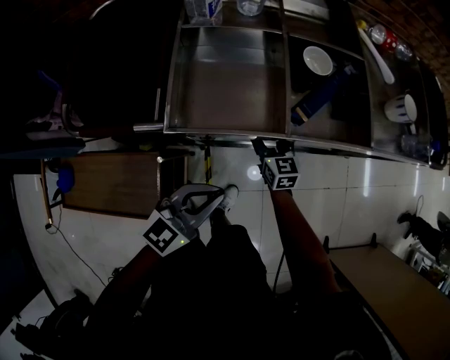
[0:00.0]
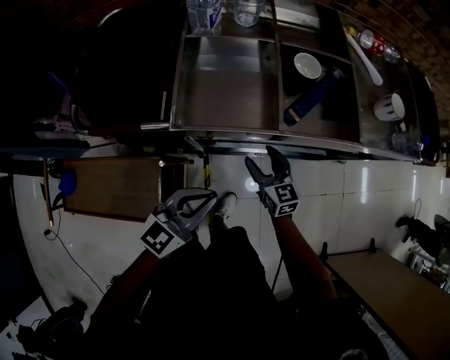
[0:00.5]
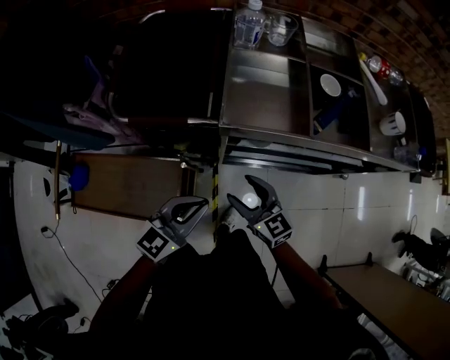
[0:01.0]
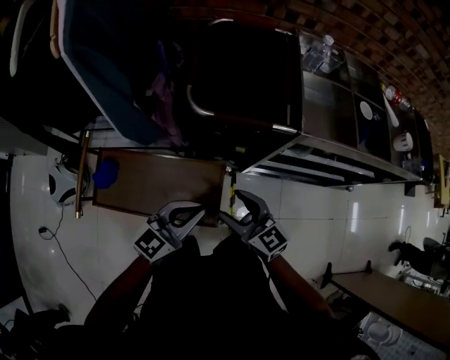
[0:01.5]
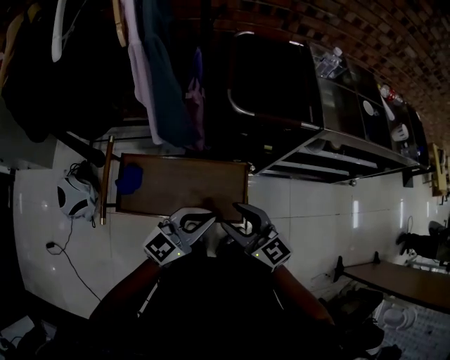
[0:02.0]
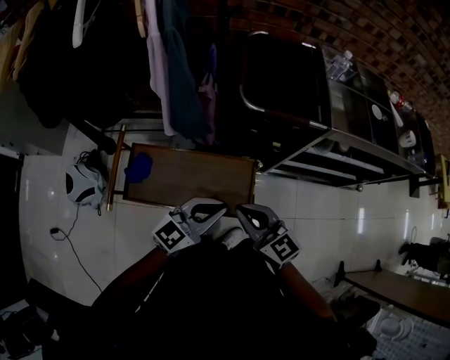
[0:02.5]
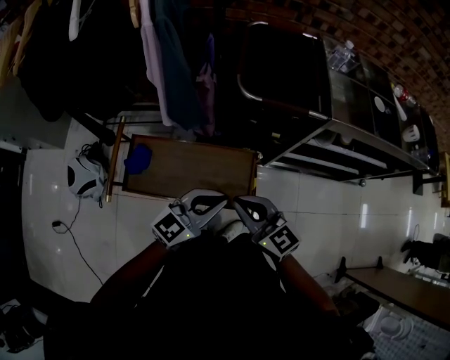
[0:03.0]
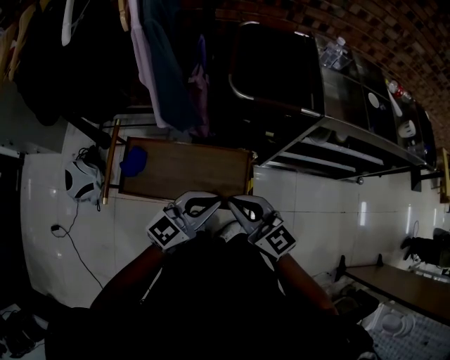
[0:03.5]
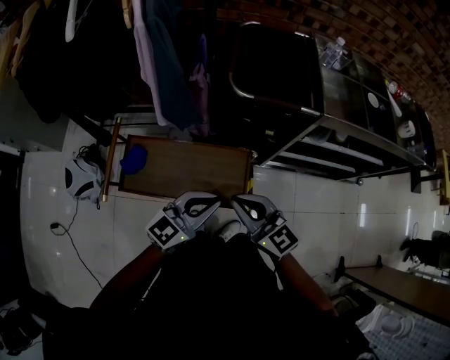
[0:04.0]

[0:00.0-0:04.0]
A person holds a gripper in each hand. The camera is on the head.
0:00.0 to 0:02.0: The two grippers travel together, to the left and backward, roughly 50 cm. The right gripper shifts roughly 25 cm upward, and rotates approximately 30 degrees.
0:02.0 to 0:04.0: The right gripper closes.

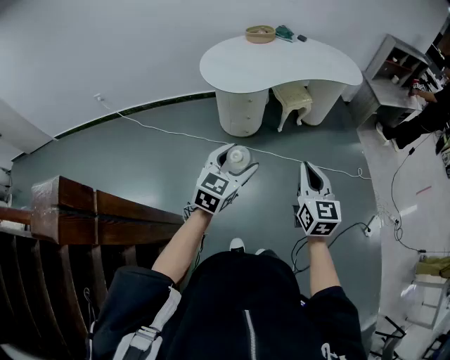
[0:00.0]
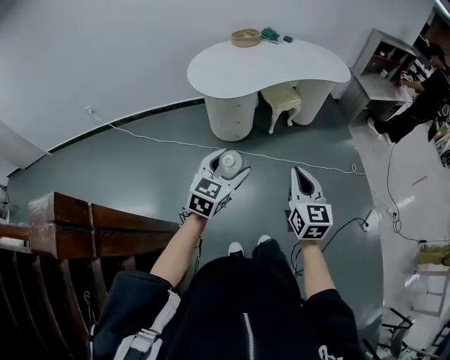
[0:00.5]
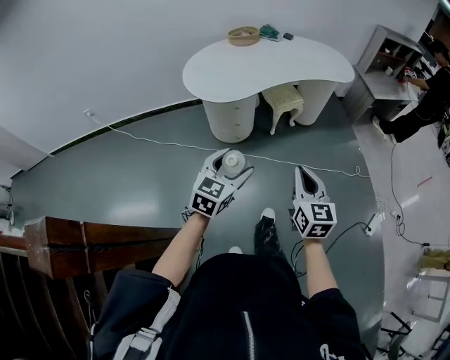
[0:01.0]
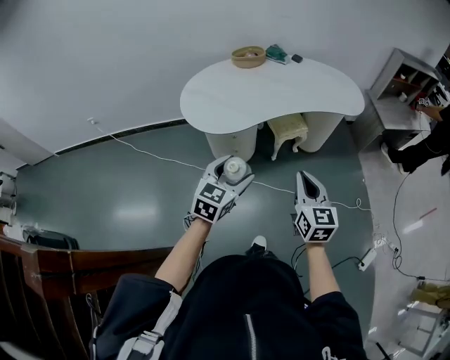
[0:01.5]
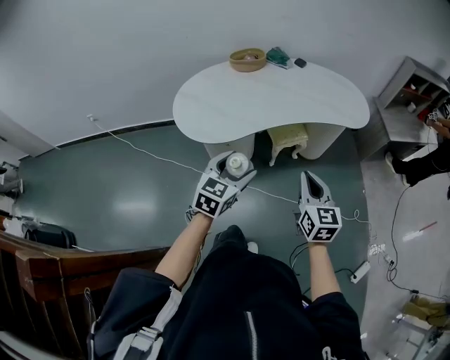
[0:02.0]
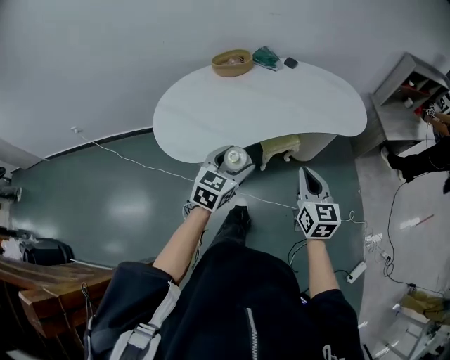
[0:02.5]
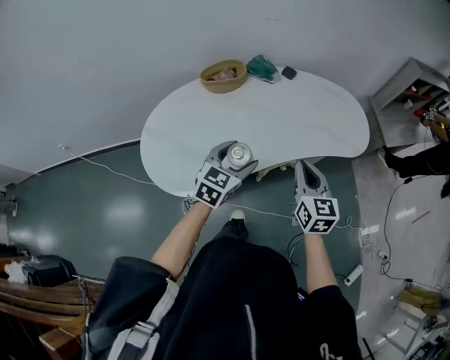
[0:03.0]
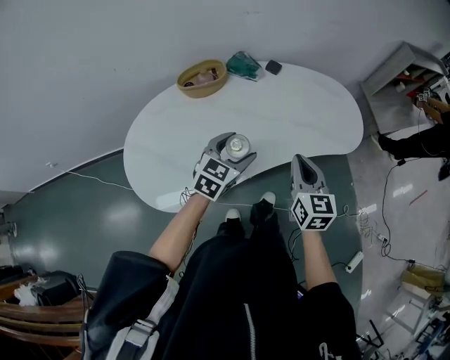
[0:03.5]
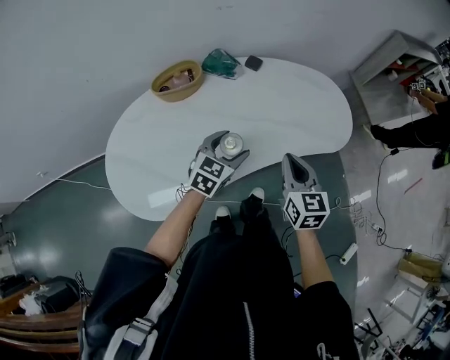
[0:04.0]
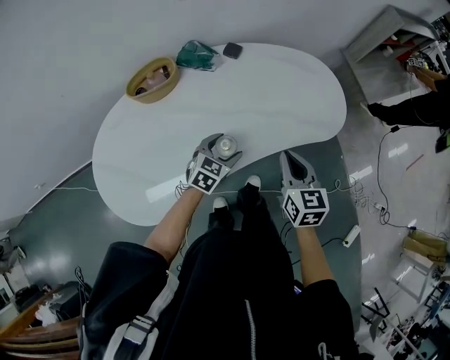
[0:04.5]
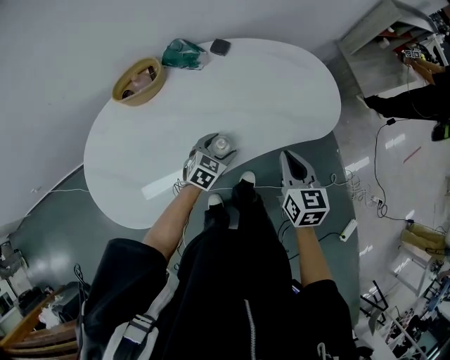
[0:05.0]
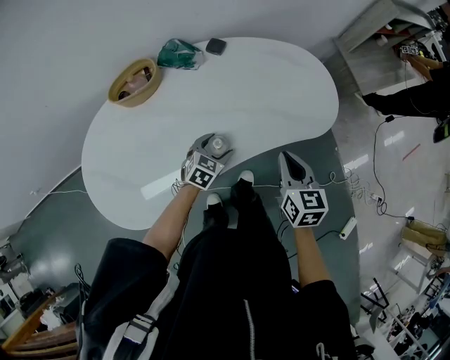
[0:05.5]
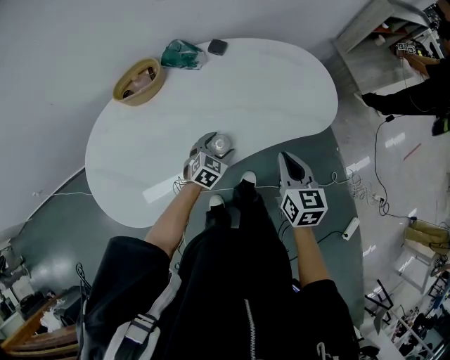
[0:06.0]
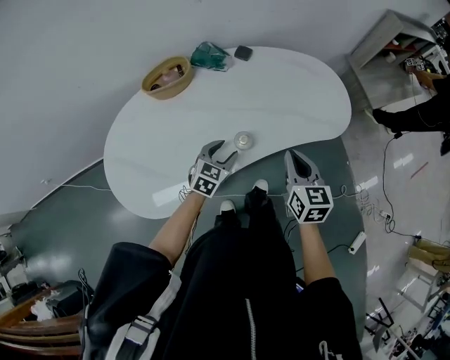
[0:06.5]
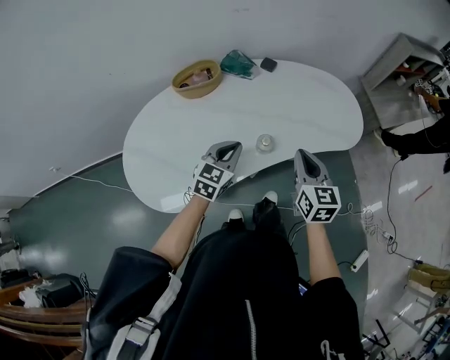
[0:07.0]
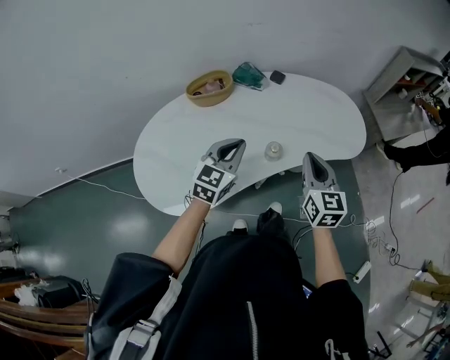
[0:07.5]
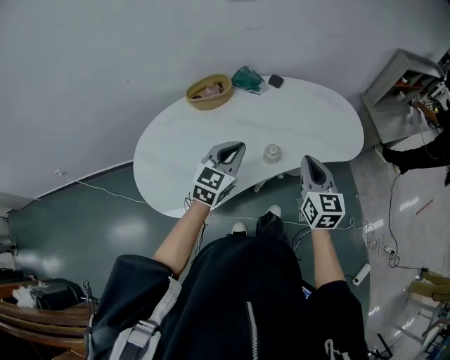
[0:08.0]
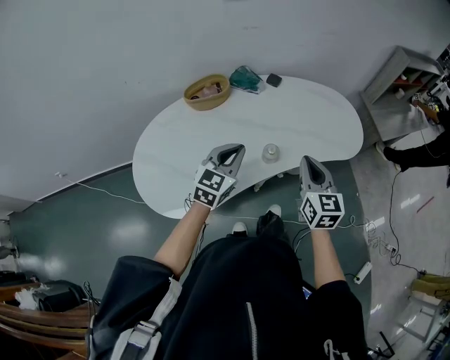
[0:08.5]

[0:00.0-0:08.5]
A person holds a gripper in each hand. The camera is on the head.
0:00.0 to 0:02.0: The two grippers go some 35 cm forward.
0:02.0 to 0:04.0: The pair of grippers is taken forward, approximately 40 cm.
0:04.0 to 0:06.5: The left gripper moves downward, about 10 cm.
0:06.5 to 0:08.5: The right gripper shifts roughly 10 cm upward and to the left. The left gripper heads upward, covering some 20 cm, and closes up.

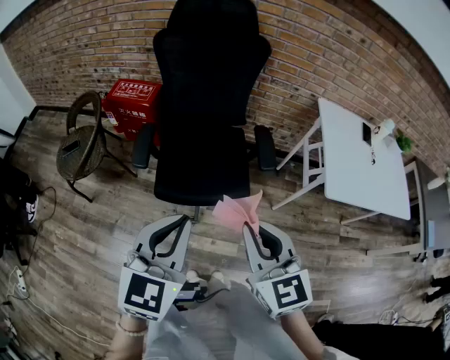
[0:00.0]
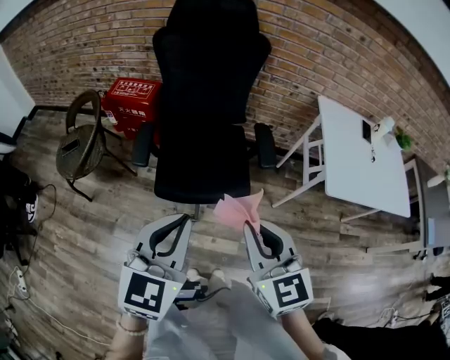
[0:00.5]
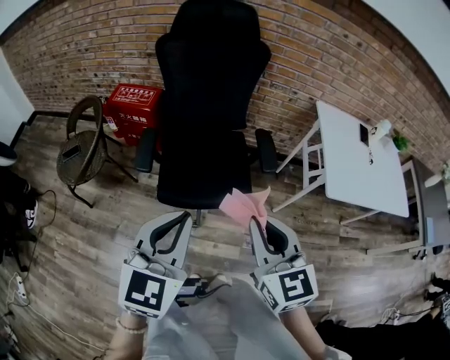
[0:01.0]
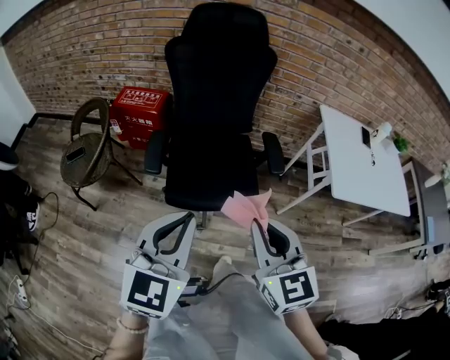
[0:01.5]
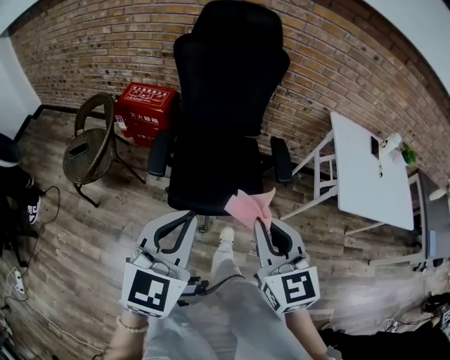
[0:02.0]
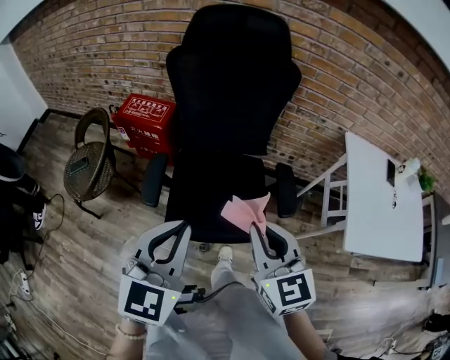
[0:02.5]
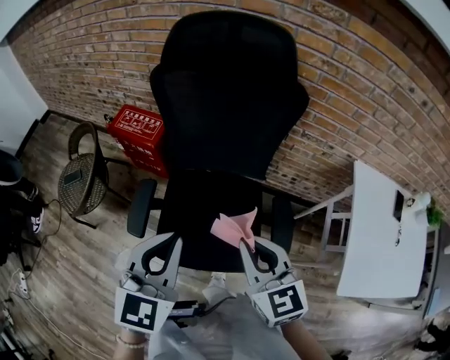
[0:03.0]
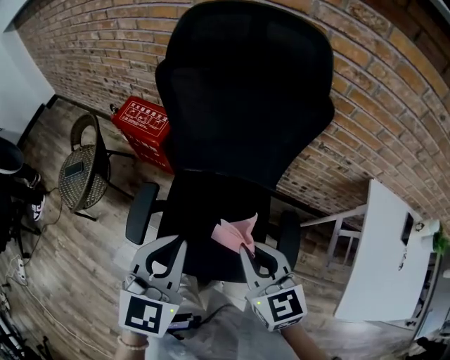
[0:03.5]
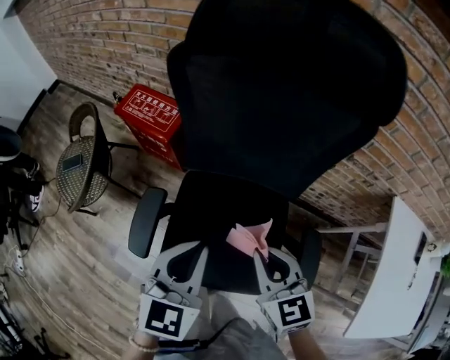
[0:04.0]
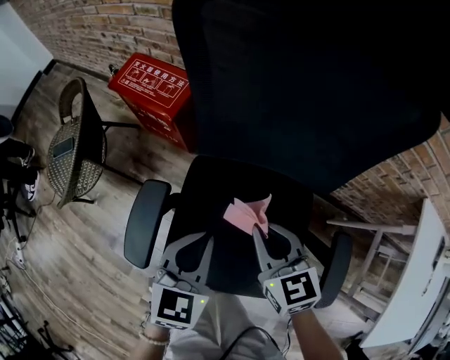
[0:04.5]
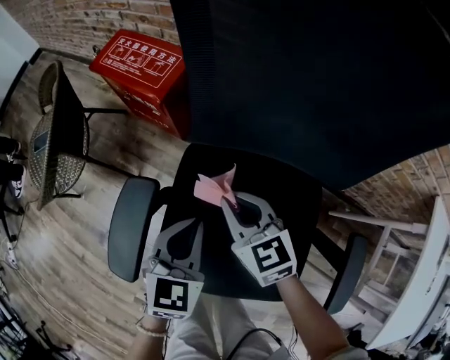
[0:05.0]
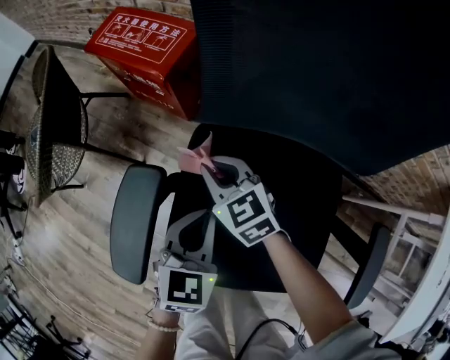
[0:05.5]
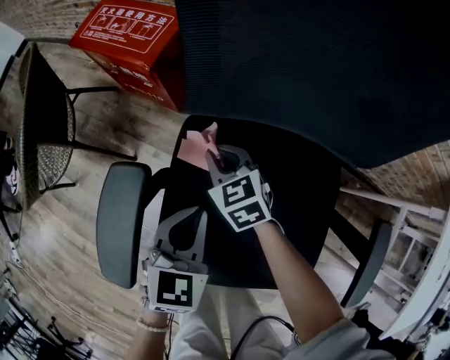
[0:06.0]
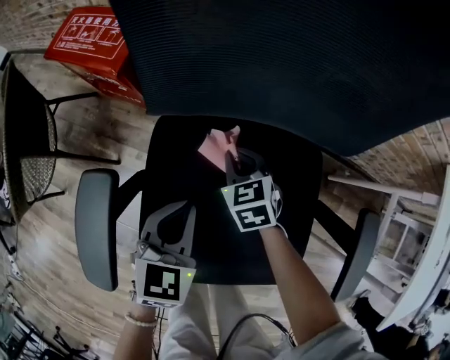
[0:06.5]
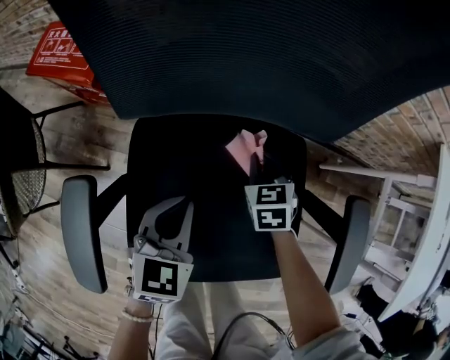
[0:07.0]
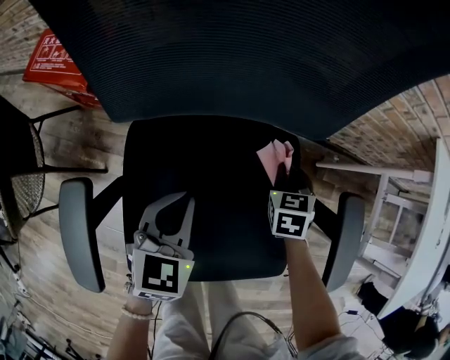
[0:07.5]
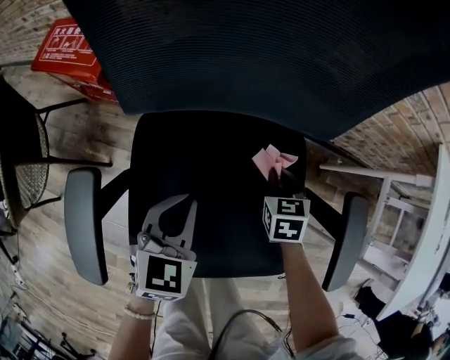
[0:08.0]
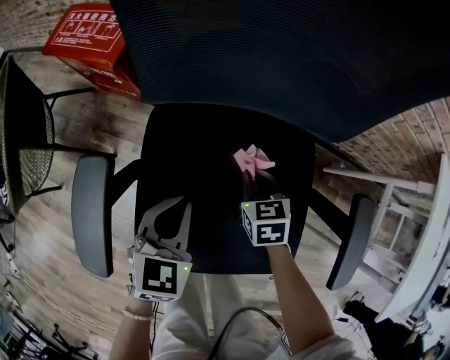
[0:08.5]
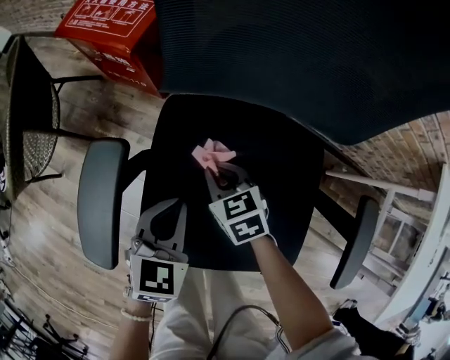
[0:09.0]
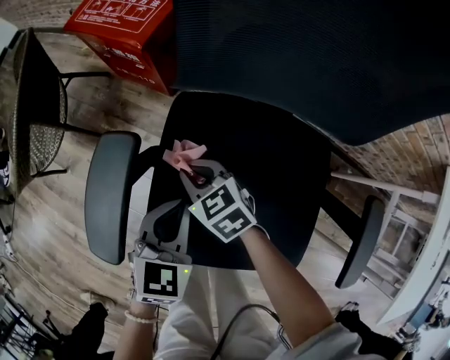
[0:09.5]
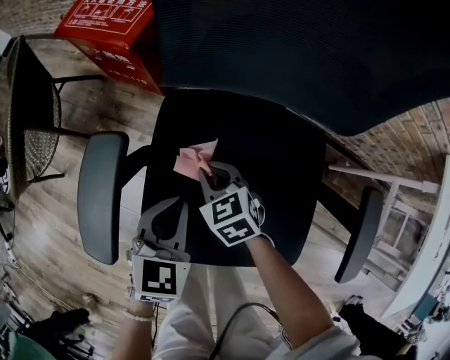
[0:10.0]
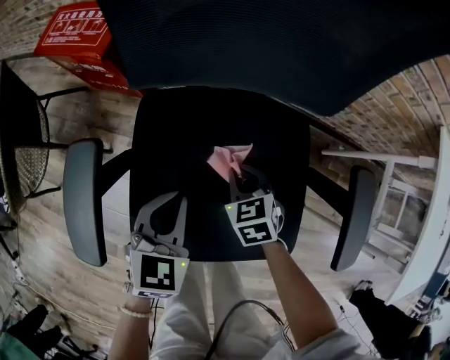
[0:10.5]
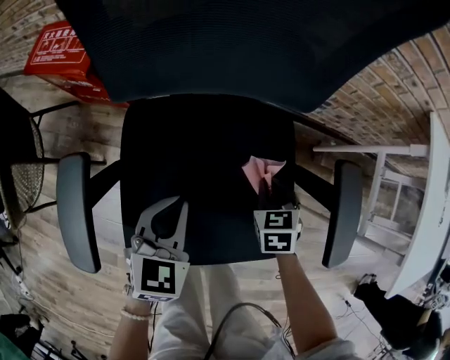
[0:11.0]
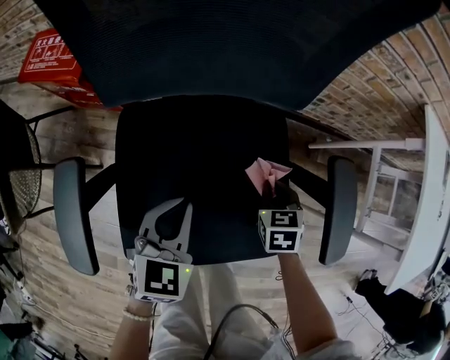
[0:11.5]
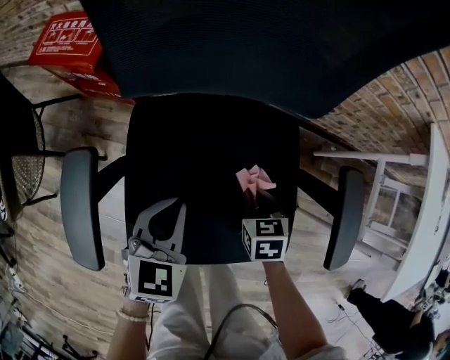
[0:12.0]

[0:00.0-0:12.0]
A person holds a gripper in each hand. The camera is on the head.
0:00.0 to 0:02.0: Both grippers move to the left, about 5 cm.
0:02.0 to 0:04.0: The two grippers travel together, forward, approximately 50 cm. The right gripper changes its angle by approximately 20 degrees.
0:04.0 to 0:06.0: The left gripper travels downward by some 35 cm. Meanwhile the right gripper travels downward and forward by roughly 50 cm.
0:06.0 to 0:08.0: The right gripper changes place by some 30 cm, and turns by roughly 40 degrees, while the left gripper moves about 10 cm.
0:08.0 to 0:10.0: The left gripper moves some 10 cm. Meanwhile the right gripper ends up approximately 25 cm from where it was, and changes its angle by roughly 40 degrees.
0:10.0 to 0:12.0: The right gripper ends up about 20 cm from where it was, and rotates roughly 40 degrees.

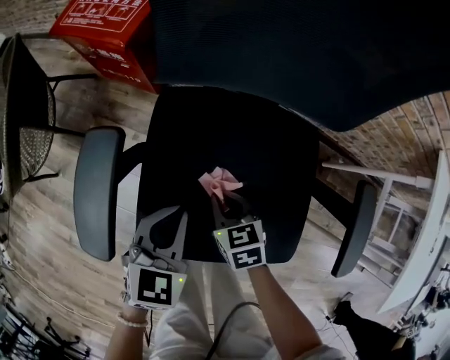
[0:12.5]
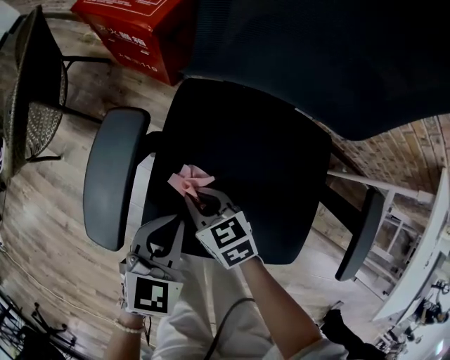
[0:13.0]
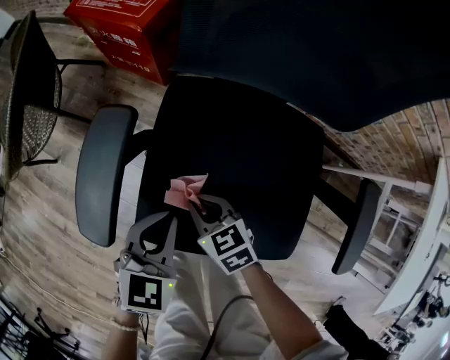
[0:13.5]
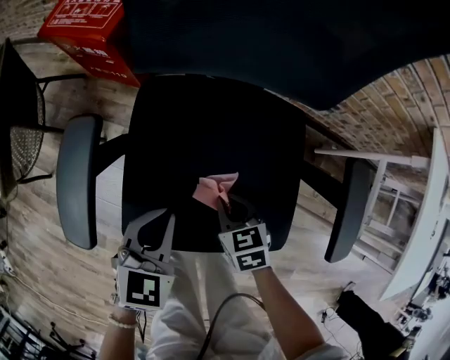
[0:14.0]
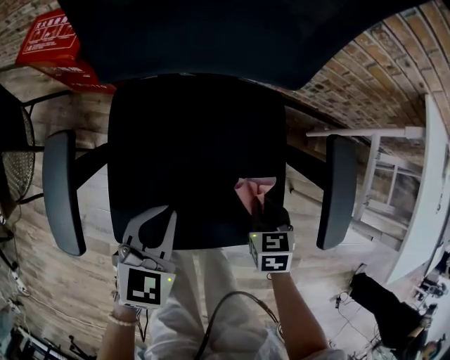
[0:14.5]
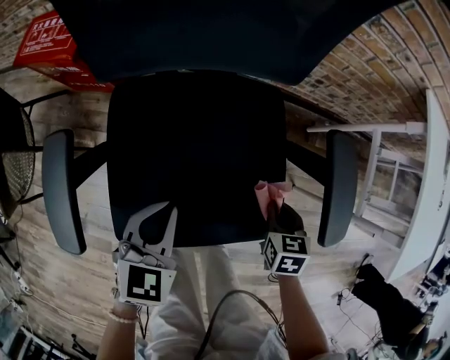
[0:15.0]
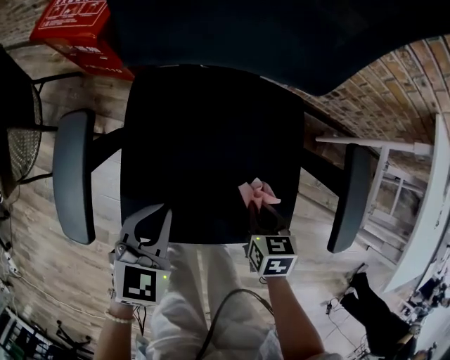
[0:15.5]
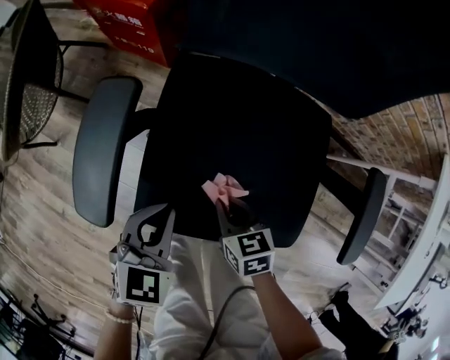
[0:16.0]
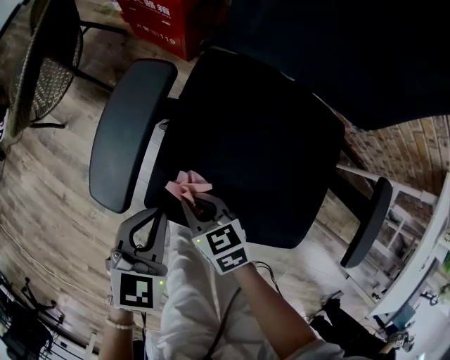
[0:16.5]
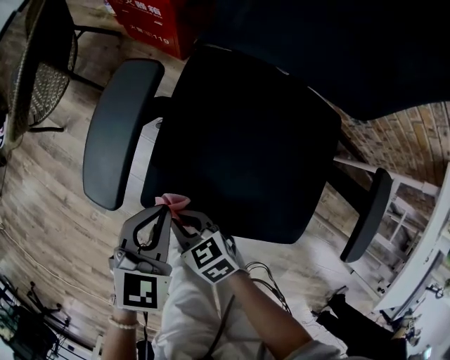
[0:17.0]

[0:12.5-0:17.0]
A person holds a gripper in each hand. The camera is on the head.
0:12.5 to 0:14.5: The right gripper moves approximately 20 cm, and turns by roughly 20 degrees, while the left gripper changes place by approximately 10 cm.
0:14.5 to 0:17.0: The right gripper ends up about 35 cm from where it was, and changes its angle by roughly 50 degrees; the left gripper shifts by approximately 15 cm.
